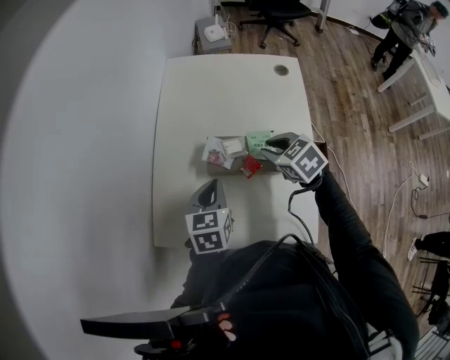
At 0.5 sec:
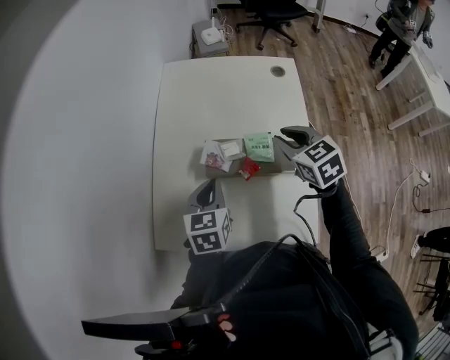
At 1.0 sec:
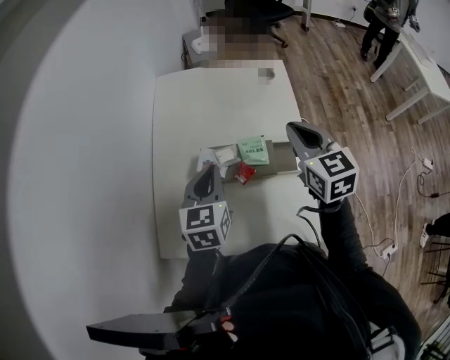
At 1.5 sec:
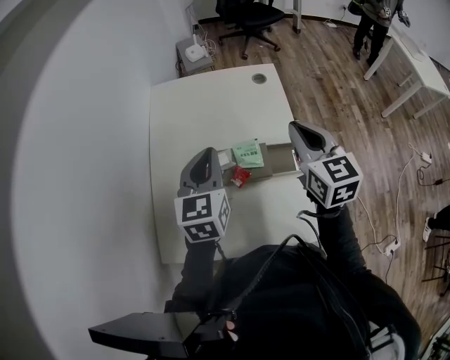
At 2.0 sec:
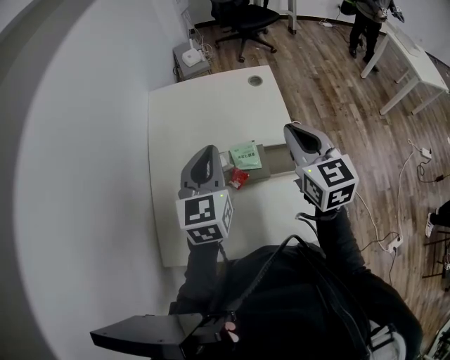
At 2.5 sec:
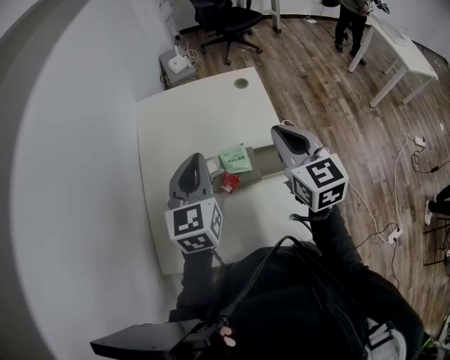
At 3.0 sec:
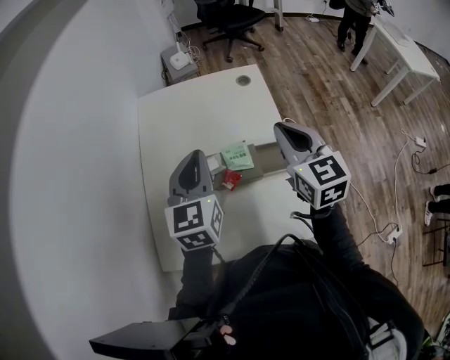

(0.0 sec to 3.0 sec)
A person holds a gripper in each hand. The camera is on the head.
0.0 sec - 1.5 sec: The right gripper is displaced upward and to the right by approximately 20 cm, points its fingers approximately 30 degrees further upward, and closes its fingers; the left gripper is displaced upward, forward and to the right by about 15 cm, and changes its angle by some 20 degrees.
1.5 sec - 3.0 sec: The grippers make only small movements.

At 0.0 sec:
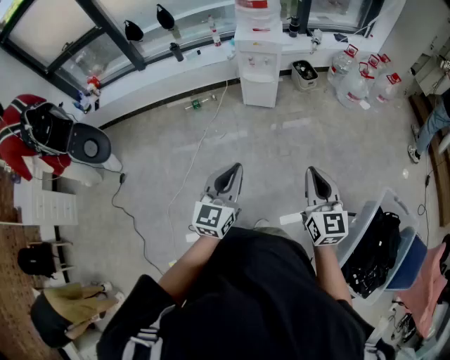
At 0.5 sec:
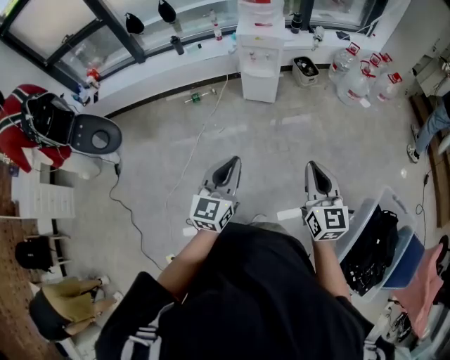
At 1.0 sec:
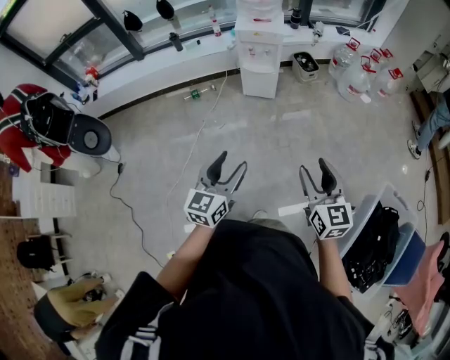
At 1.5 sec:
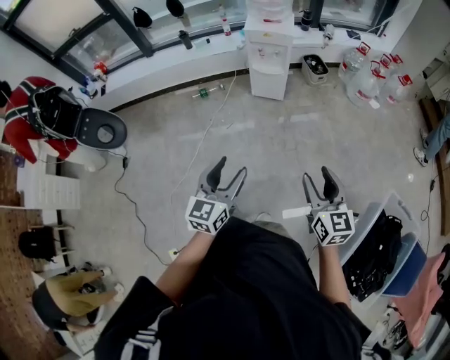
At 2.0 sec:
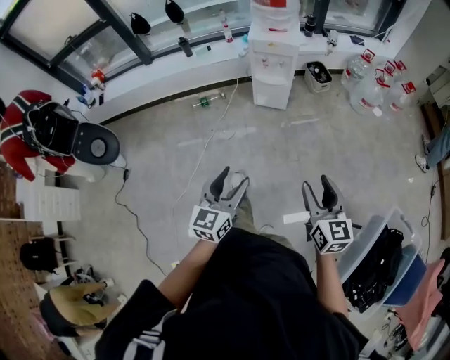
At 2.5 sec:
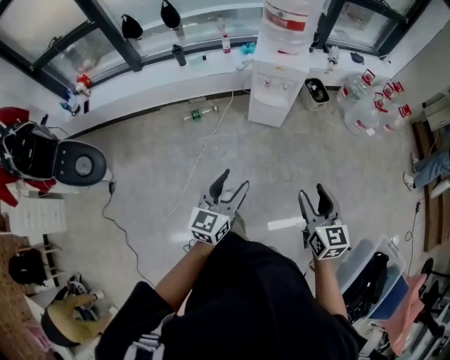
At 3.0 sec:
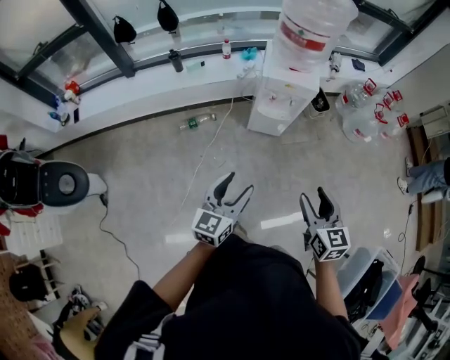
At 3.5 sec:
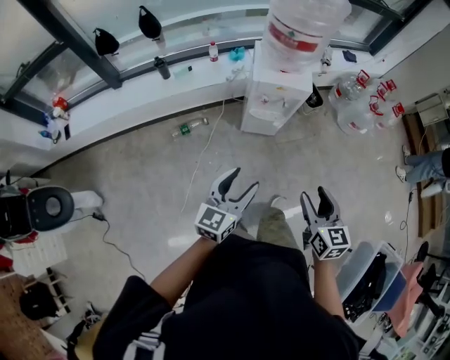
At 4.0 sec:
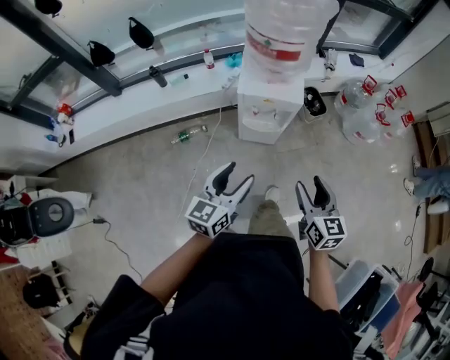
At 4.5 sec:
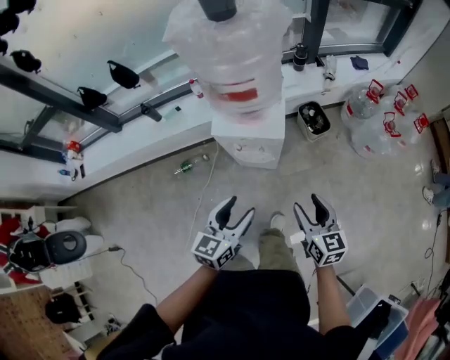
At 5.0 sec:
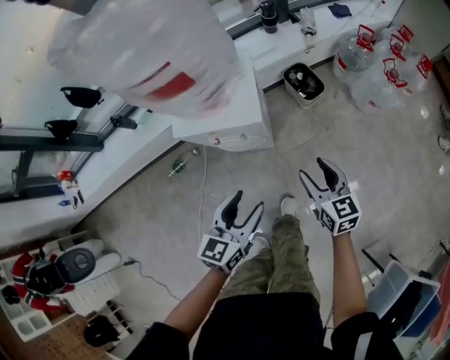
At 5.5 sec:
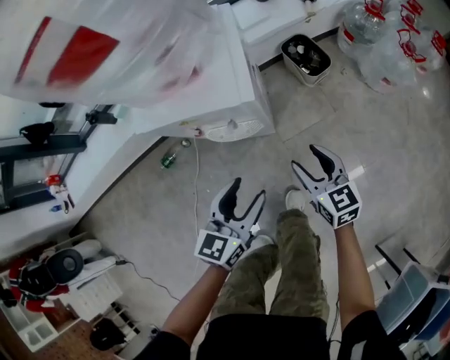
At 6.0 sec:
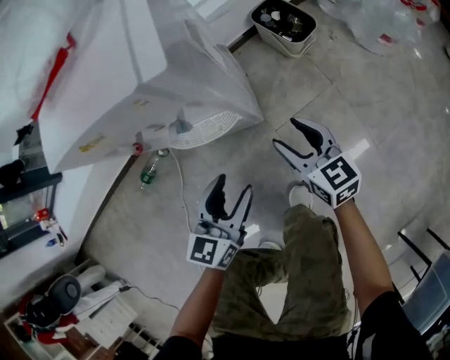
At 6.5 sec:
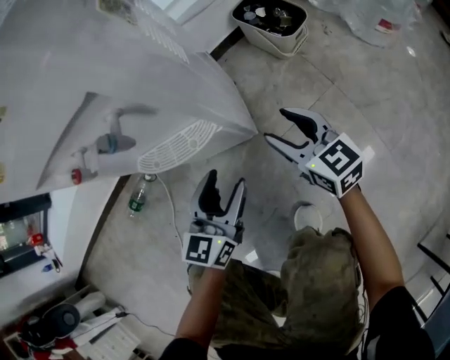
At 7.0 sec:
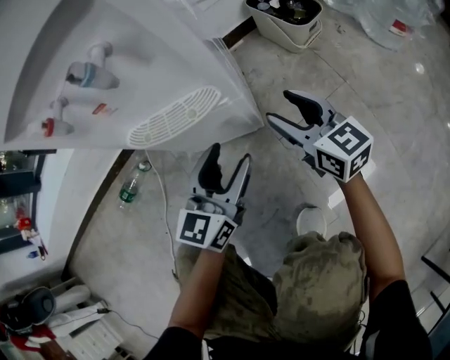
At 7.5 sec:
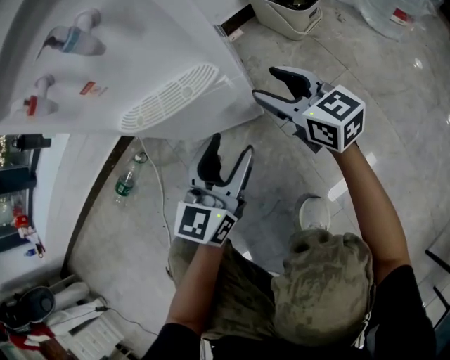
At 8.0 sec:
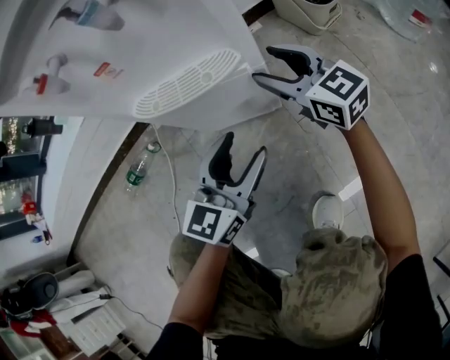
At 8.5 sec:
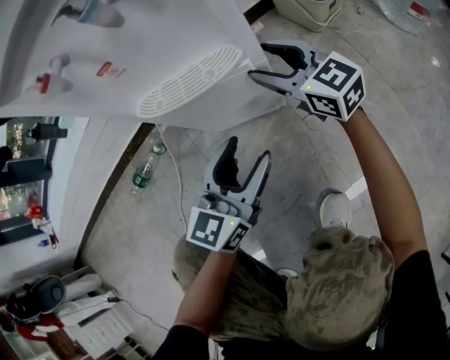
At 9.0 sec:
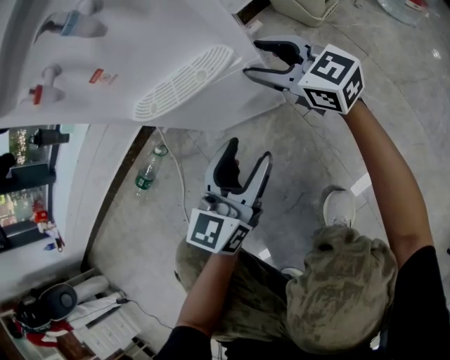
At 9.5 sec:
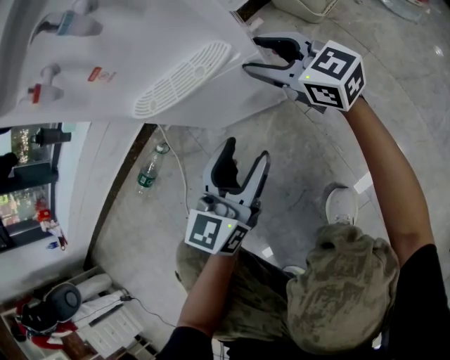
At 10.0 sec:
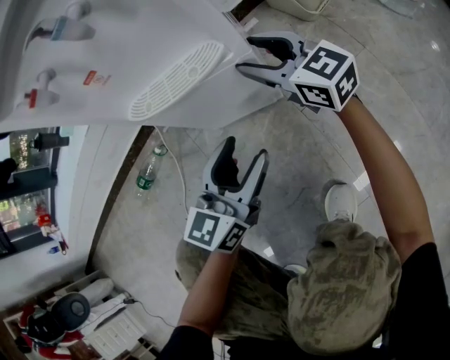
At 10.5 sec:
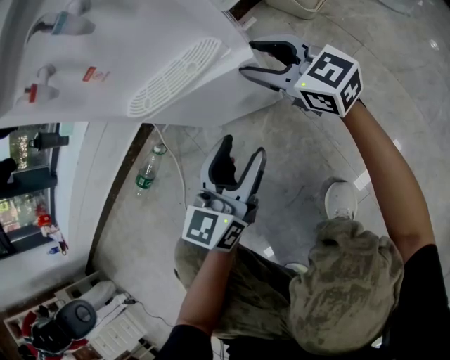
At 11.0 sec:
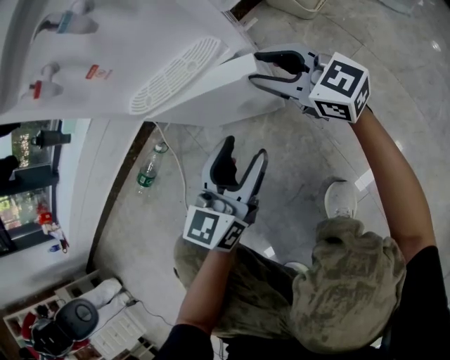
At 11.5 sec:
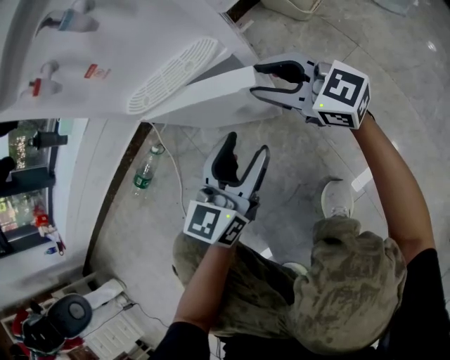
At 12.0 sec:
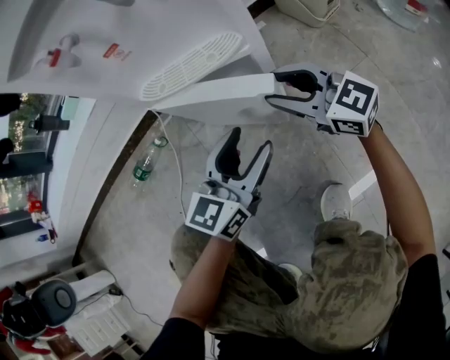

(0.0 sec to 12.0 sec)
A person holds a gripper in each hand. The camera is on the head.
0.0 sec - 2.0 sec: The right gripper moves forward, about 5 cm, and opens. Meanwhile the left gripper moves forward and downward, roughly 5 cm, and opens.
2.0 sec - 4.0 sec: Both grippers are carried forward, approximately 40 cm.
4.0 sec - 6.0 sec: The two grippers go roughly 50 cm downward and forward.
6.0 sec - 8.0 sec: The left gripper travels downward by roughly 20 cm, while the right gripper goes roughly 20 cm downward, forward and to the left, and changes its angle by approximately 20 degrees.
8.0 sec - 10.0 sec: The grippers make only small movements.
10.0 sec - 12.0 sec: The right gripper travels backward by some 10 cm.

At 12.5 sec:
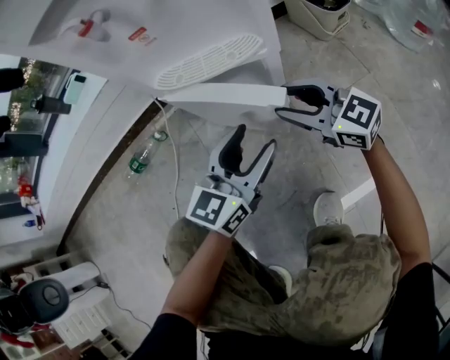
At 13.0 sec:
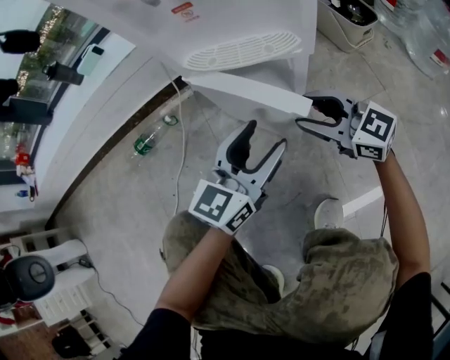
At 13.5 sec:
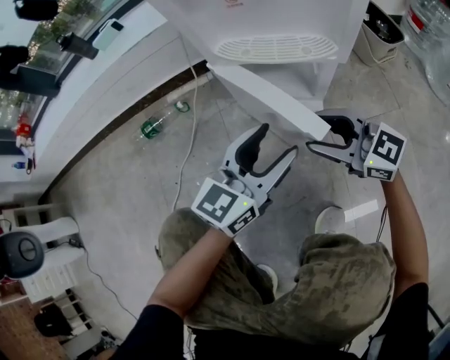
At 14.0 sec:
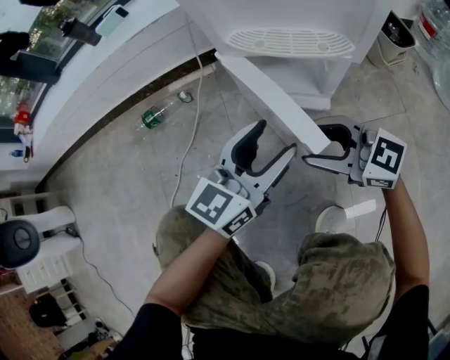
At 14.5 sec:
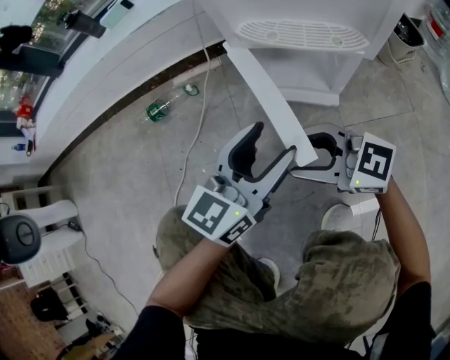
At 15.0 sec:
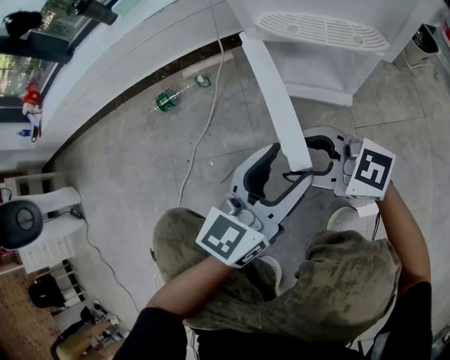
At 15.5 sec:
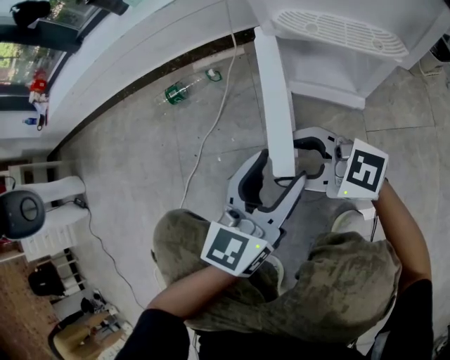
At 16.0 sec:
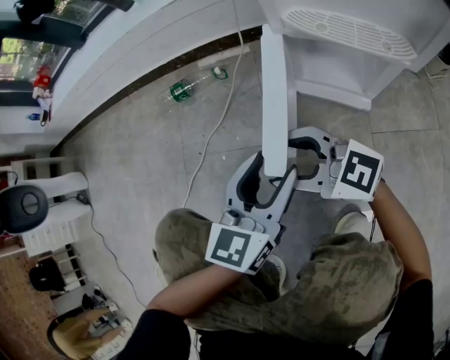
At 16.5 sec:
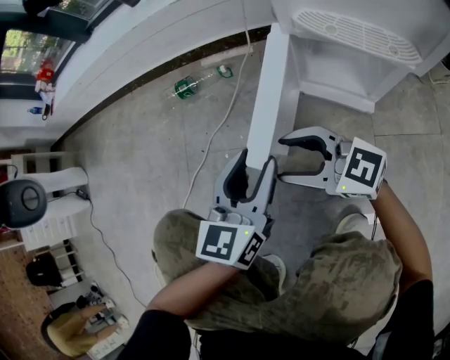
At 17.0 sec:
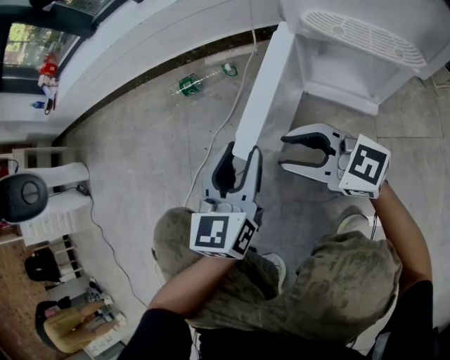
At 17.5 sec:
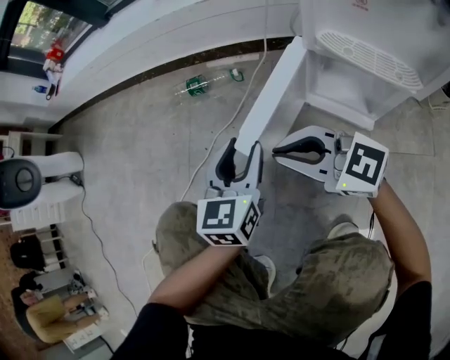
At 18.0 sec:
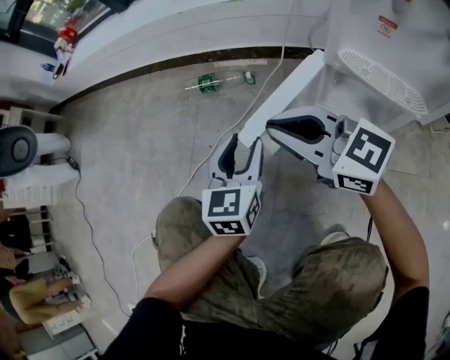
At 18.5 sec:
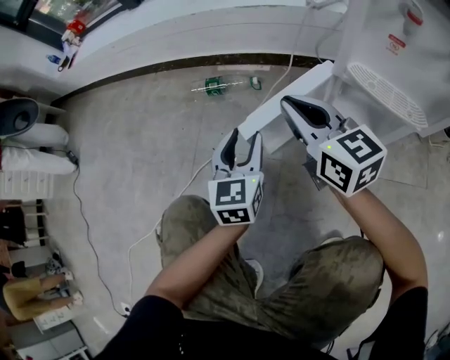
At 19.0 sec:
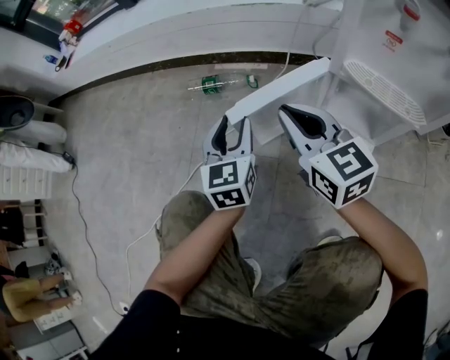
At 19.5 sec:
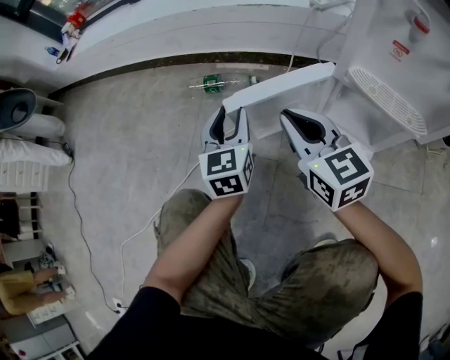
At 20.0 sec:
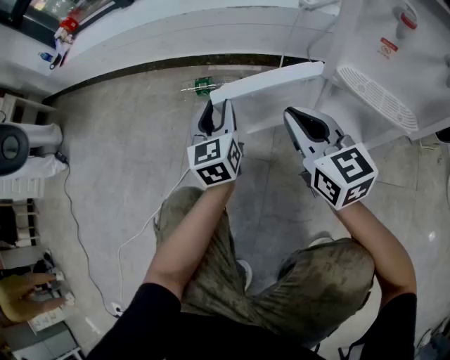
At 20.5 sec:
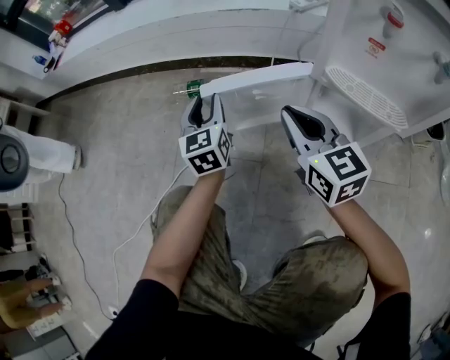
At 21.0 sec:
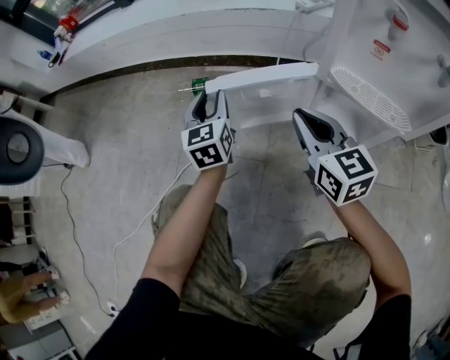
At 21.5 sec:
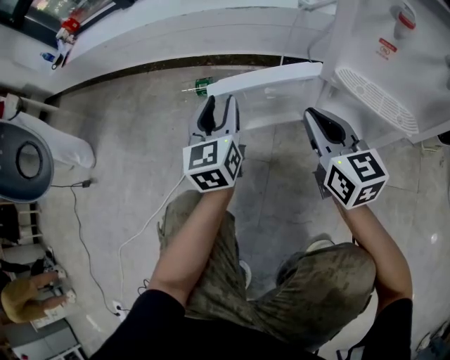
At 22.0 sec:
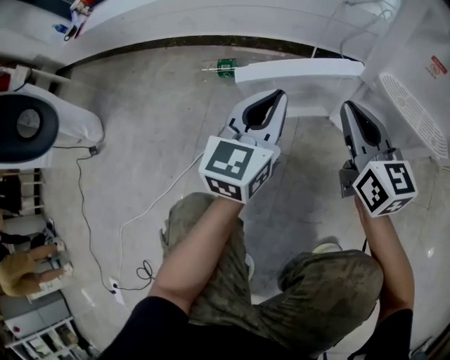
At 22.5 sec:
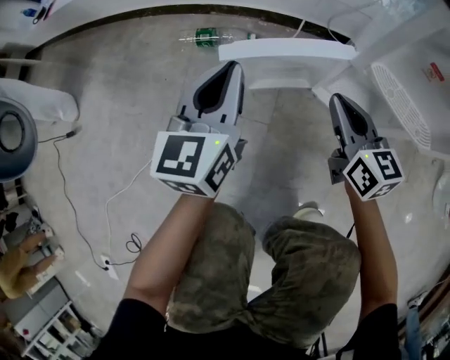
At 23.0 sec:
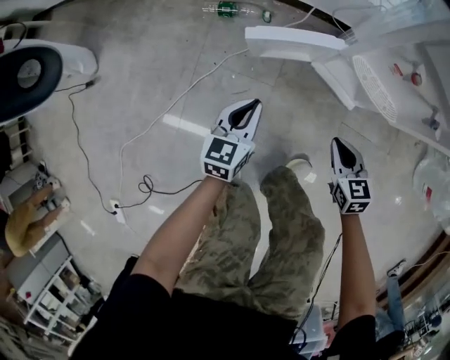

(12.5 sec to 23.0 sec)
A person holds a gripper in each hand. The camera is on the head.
12.5 sec - 14.5 sec: The right gripper travels to the left by roughly 15 cm, and swivels about 30 degrees, while the left gripper goes some 10 cm to the left.
14.5 sec - 16.5 sec: The two grippers go some 10 cm to the left. The left gripper rotates roughly 30 degrees.
16.5 sec - 19.0 sec: The right gripper goes some 15 cm forward and upward, swivels approximately 30 degrees, and closes its fingers. The left gripper moves forward and to the left, about 15 cm, and rotates roughly 30 degrees.
19.0 sec - 21.0 sec: The left gripper shifts roughly 10 cm forward. Meanwhile the right gripper heads to the right, covering some 5 cm.
21.0 sec - 23.0 sec: The left gripper shifts approximately 20 cm backward and upward, swivels about 30 degrees, and closes up; the right gripper heads backward and to the right, covering roughly 15 cm, and rotates roughly 30 degrees.

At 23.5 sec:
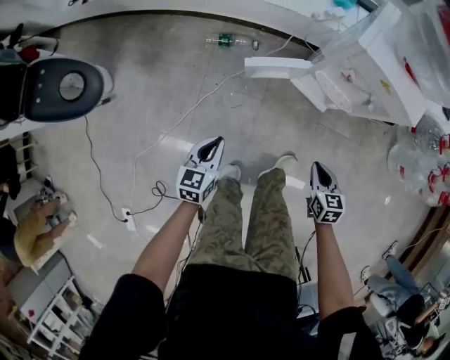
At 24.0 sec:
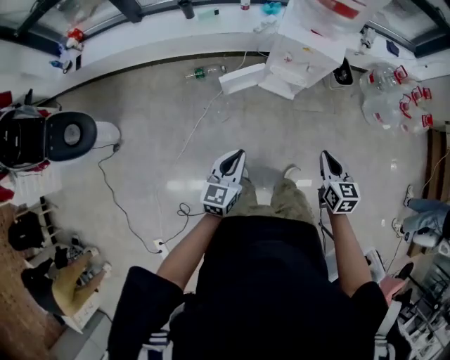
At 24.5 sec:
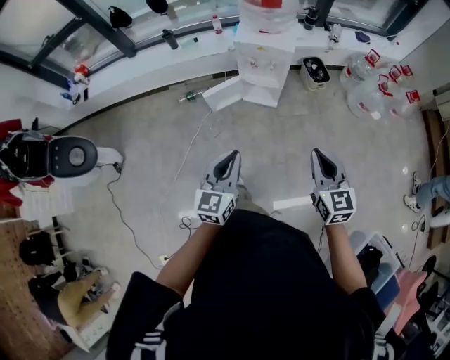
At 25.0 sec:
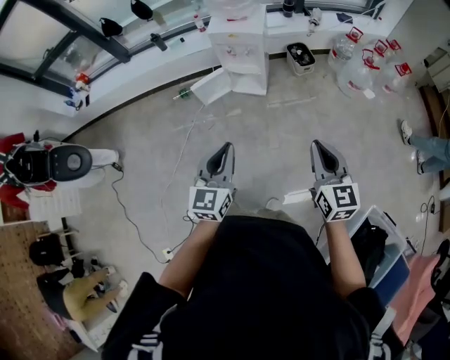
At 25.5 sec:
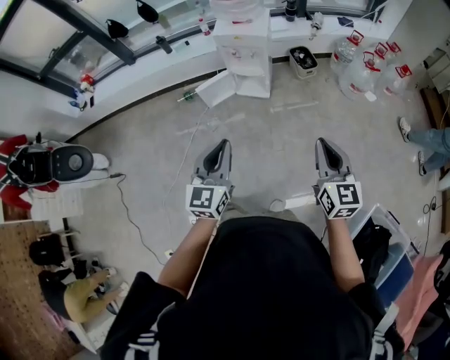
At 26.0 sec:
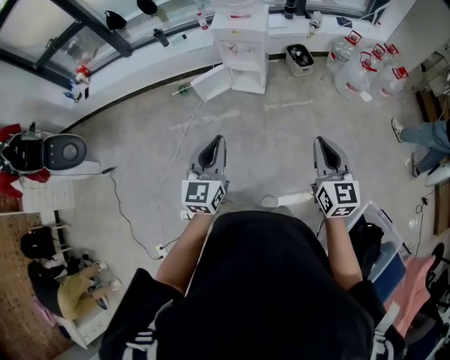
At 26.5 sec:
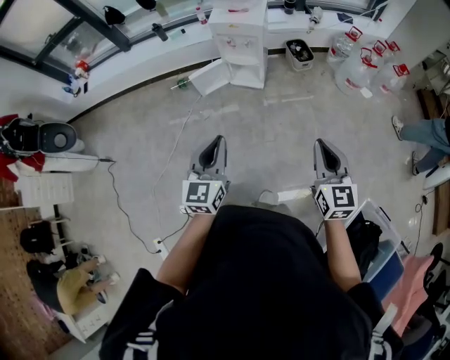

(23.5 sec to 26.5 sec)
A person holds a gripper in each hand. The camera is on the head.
23.5 sec - 25.0 sec: Both grippers are carried backward and to the right, approximately 40 cm. The grippers both shift upward by roughly 40 cm. The left gripper changes its angle by approximately 30 degrees. Meanwhile the right gripper points its fingers some 30 degrees further upward.
25.0 sec - 26.5 sec: The right gripper moves roughly 5 cm.
